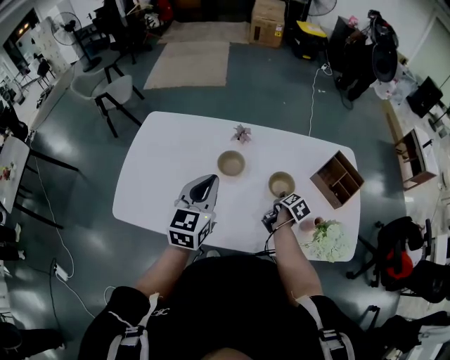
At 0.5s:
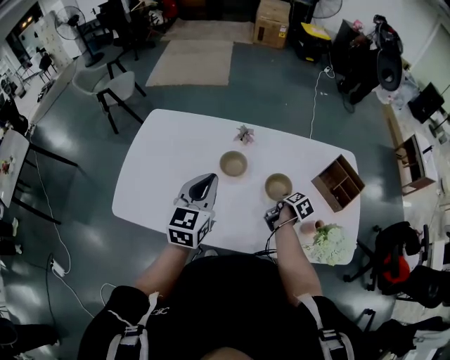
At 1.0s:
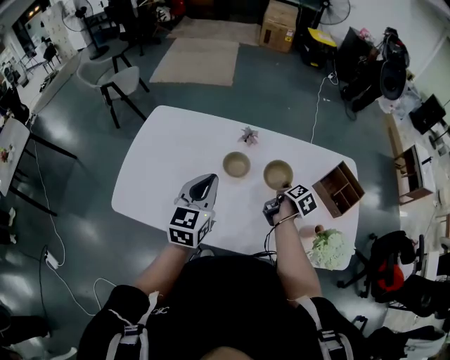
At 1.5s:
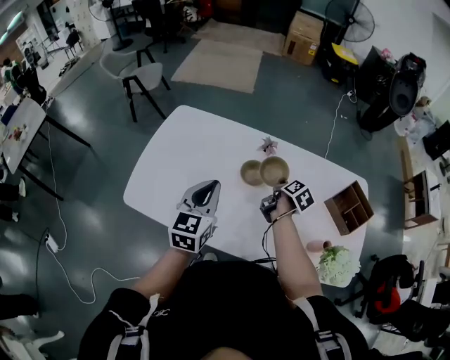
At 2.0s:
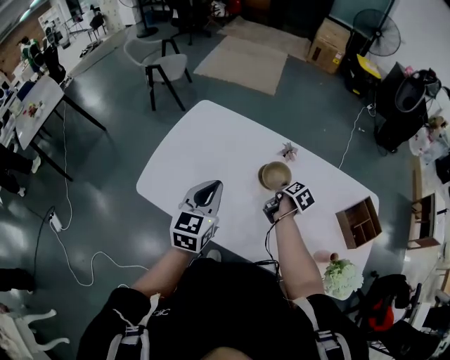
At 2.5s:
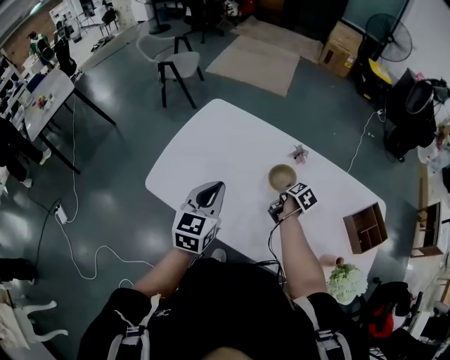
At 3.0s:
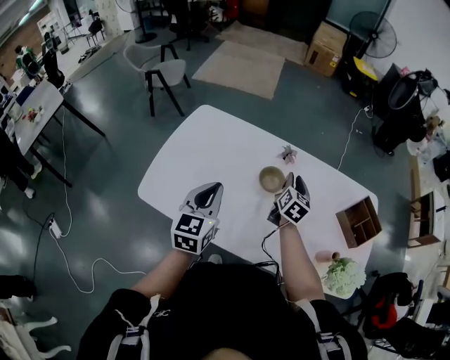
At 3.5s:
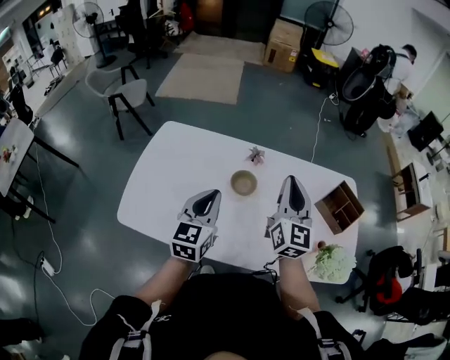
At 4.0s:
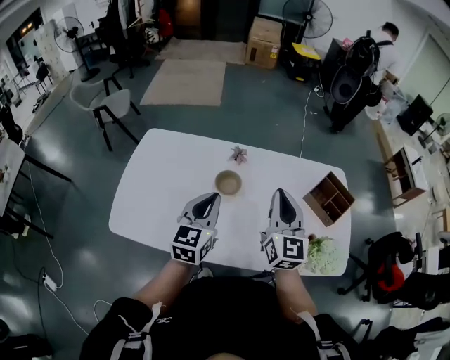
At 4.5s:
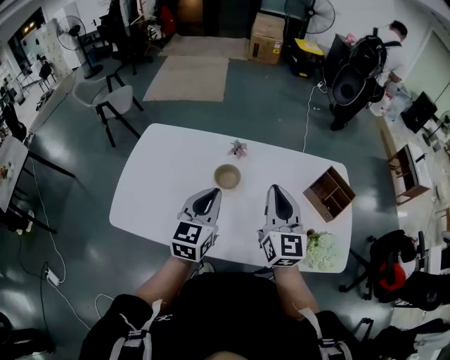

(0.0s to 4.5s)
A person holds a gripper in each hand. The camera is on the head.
0.0s - 2.0s: The right gripper is displaced to the left by roughly 20 cm, and closes its fingers, while the left gripper moves to the left, approximately 15 cm.
2.0s - 4.5s: The left gripper goes about 15 cm to the right; the right gripper goes roughly 30 cm upward and backward, tilts its fingers some 50 degrees upward, and opens and closes again.

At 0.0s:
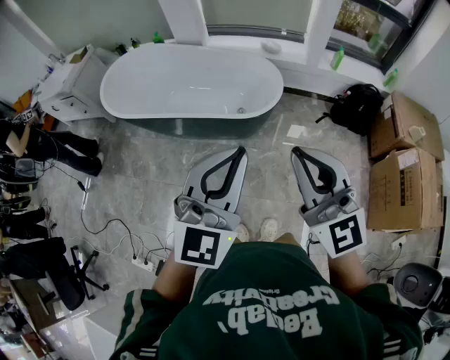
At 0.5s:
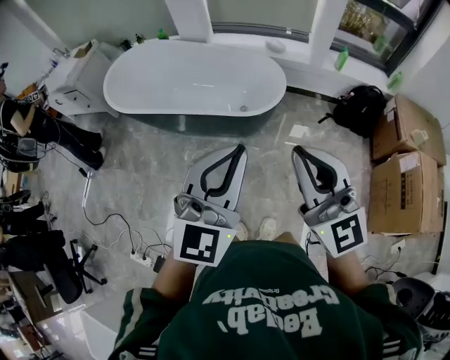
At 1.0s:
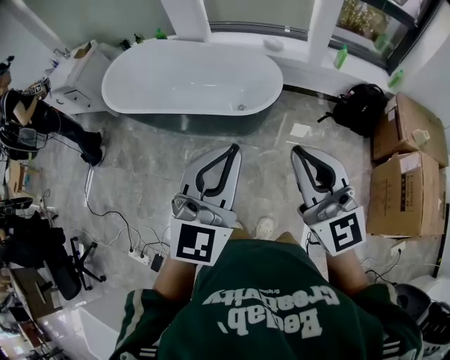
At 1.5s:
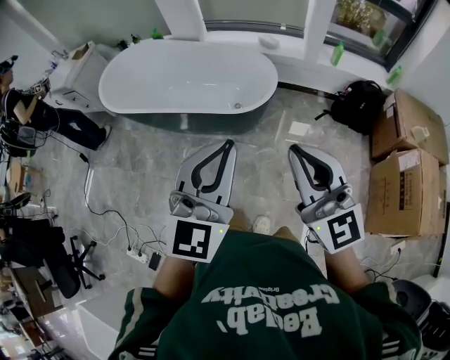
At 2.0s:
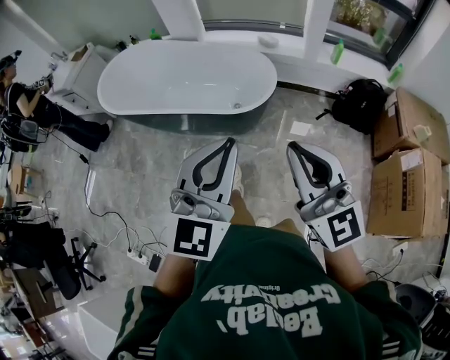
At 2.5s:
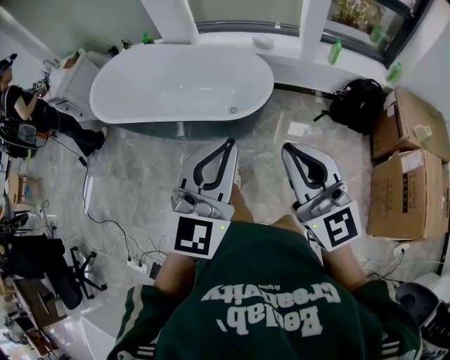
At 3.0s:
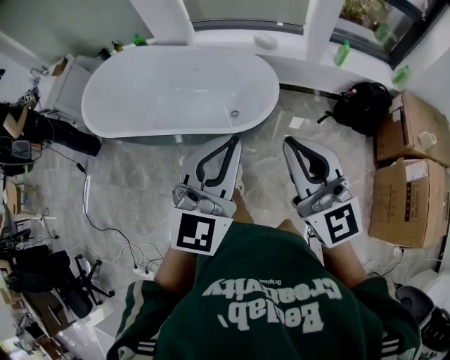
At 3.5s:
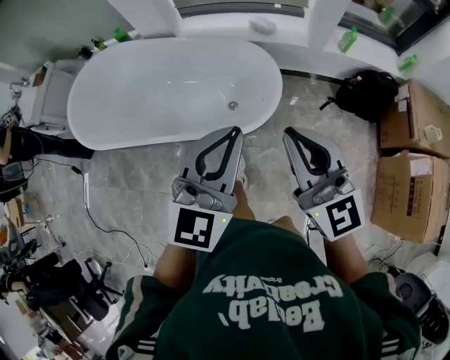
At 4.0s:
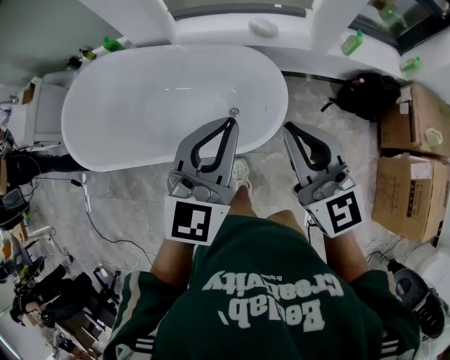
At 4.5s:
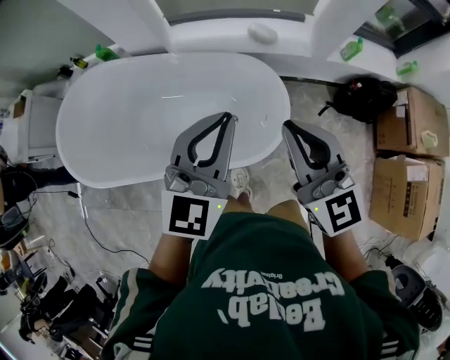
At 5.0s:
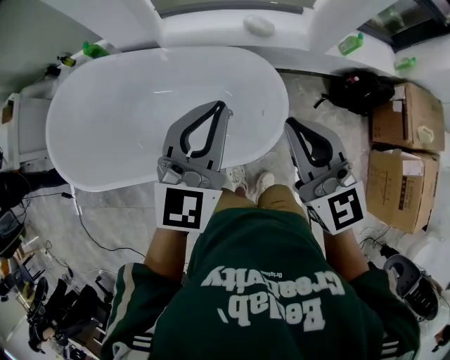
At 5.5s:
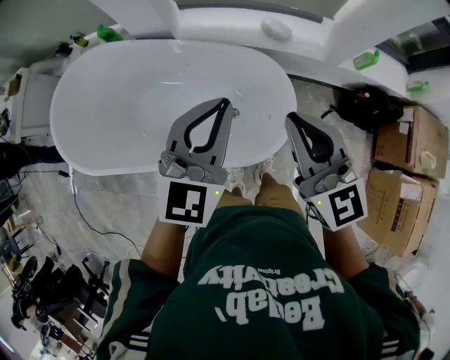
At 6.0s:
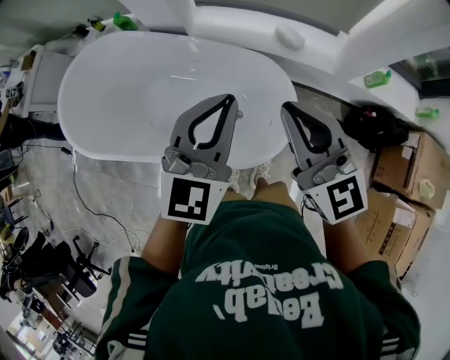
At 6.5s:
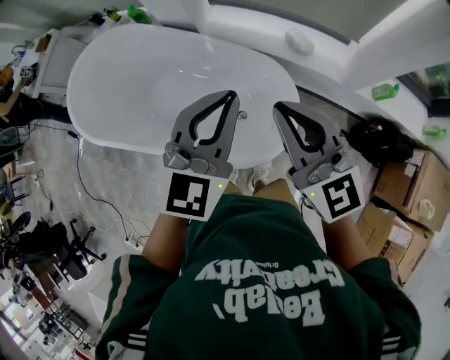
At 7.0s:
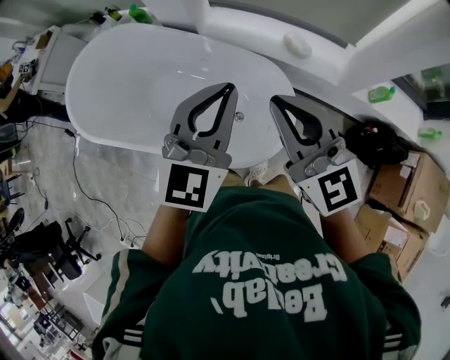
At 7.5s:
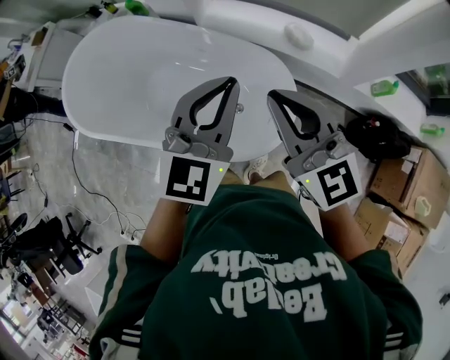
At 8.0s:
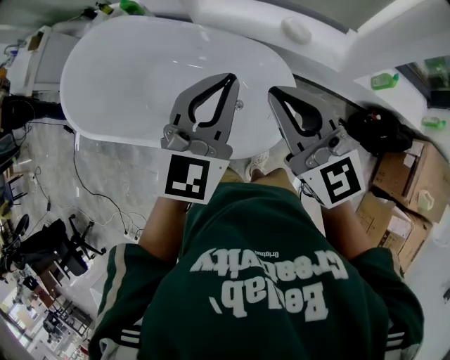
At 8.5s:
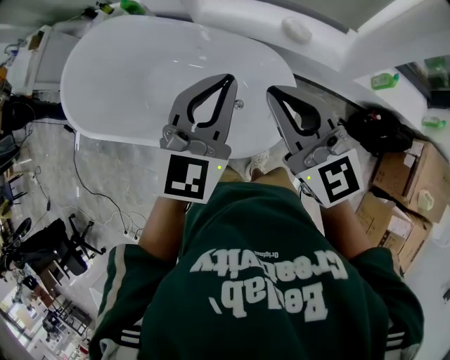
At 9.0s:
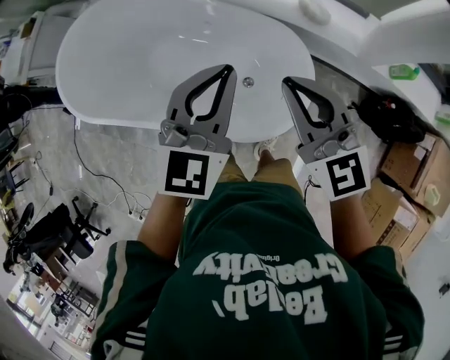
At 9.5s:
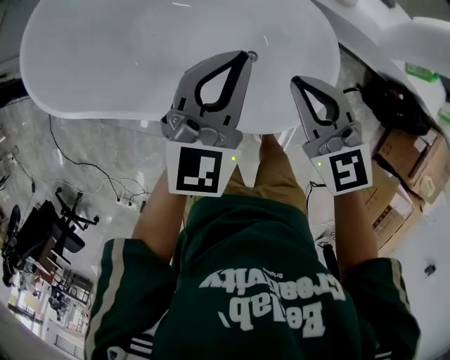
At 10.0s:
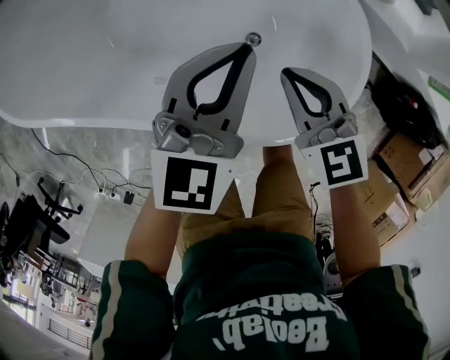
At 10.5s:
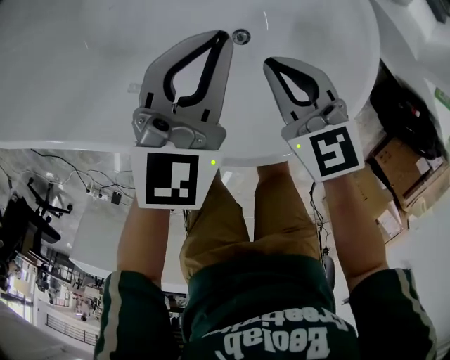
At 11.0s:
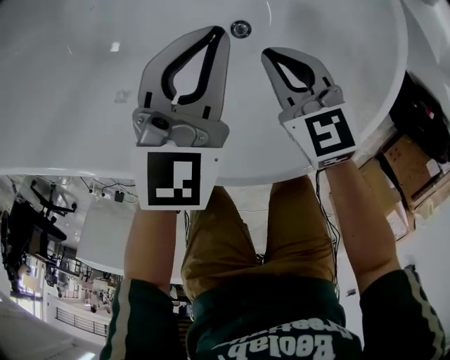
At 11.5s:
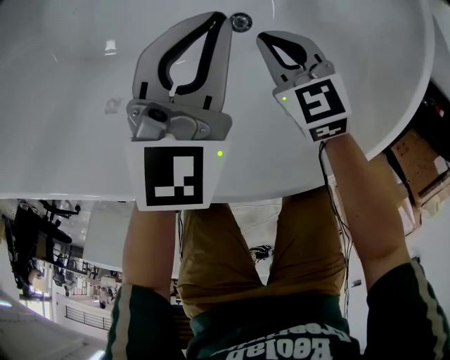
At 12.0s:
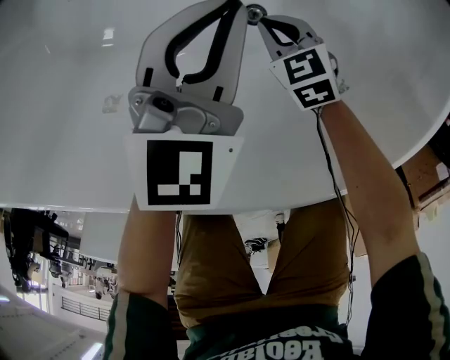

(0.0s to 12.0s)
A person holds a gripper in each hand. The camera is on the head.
0.0s - 2.0s: Both grippers move to the right, roughly 10 cm.
2.0s - 4.0s: The pair of grippers is taken forward, approximately 40 cm.
4.0s - 6.0s: Both grippers move forward, about 20 cm.
6.0s - 8.0s: The grippers move only a little.
8.0s - 10.0s: The right gripper goes roughly 40 cm downward, and tips its fingers downward by some 30 degrees. Meanwhile the left gripper heads downward and to the left, covering about 35 cm.
10.0s - 12.0s: The two grippers go some 35 cm downward. The right gripper turns by some 20 degrees.

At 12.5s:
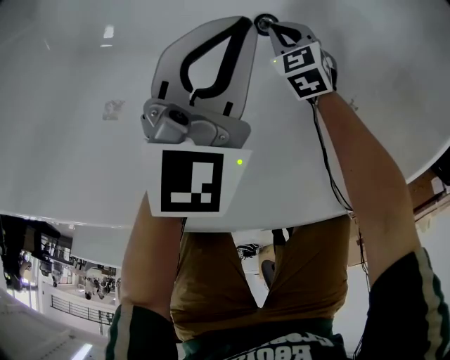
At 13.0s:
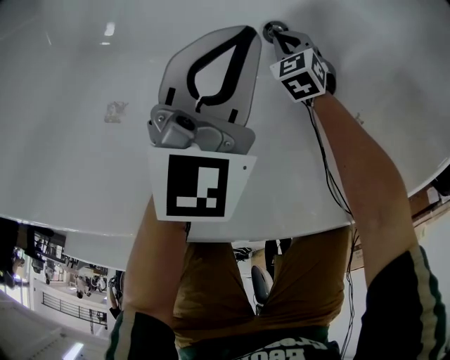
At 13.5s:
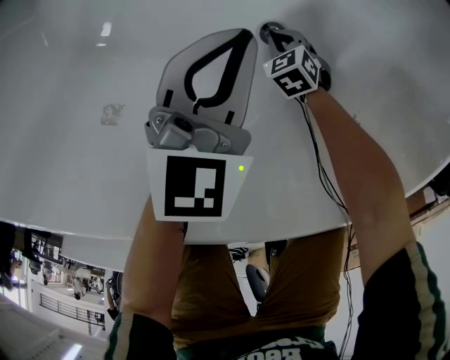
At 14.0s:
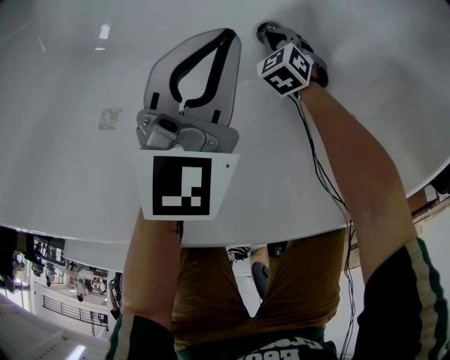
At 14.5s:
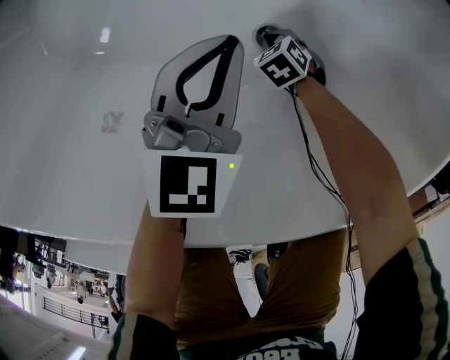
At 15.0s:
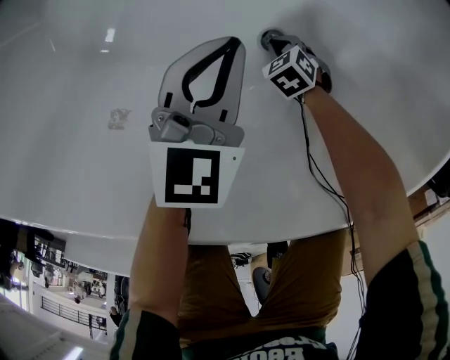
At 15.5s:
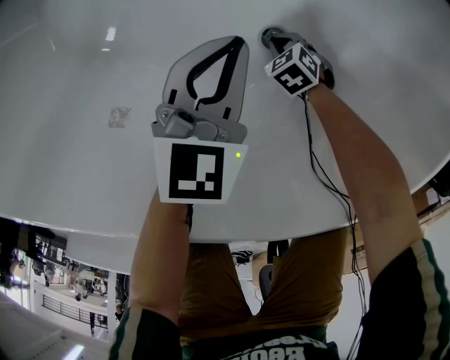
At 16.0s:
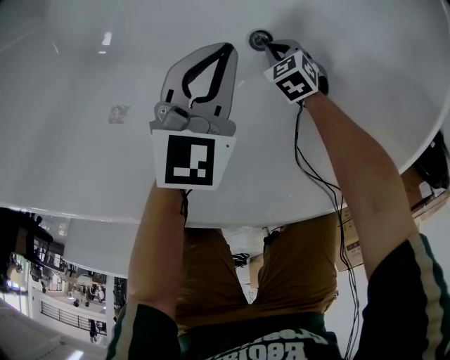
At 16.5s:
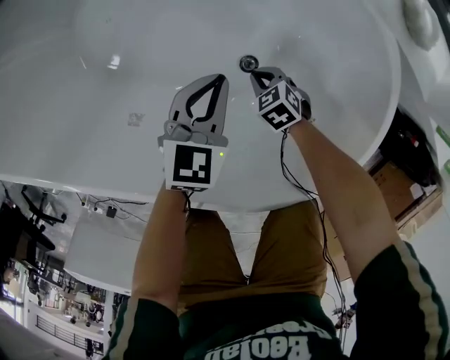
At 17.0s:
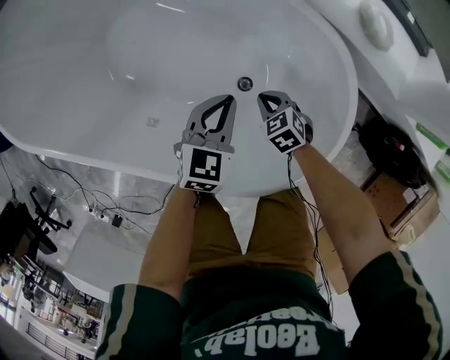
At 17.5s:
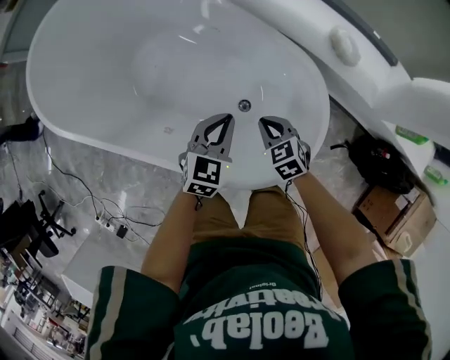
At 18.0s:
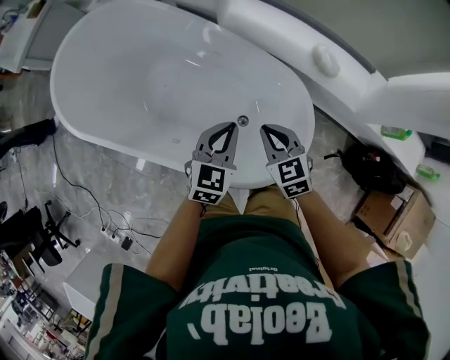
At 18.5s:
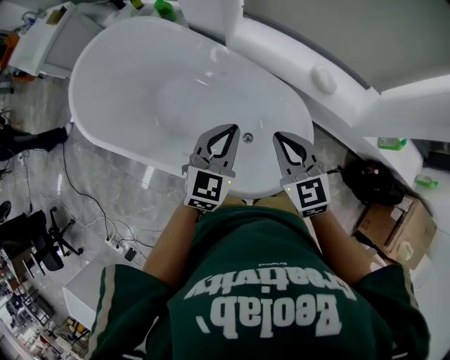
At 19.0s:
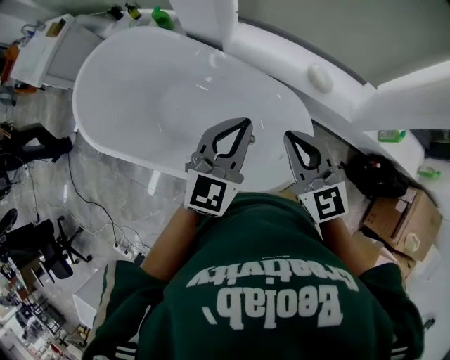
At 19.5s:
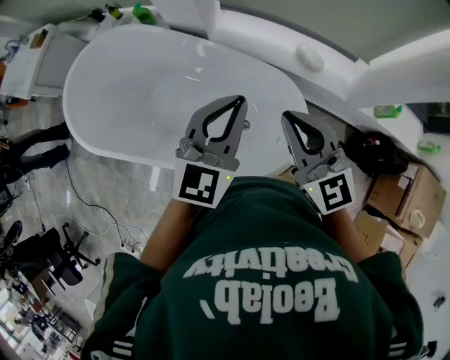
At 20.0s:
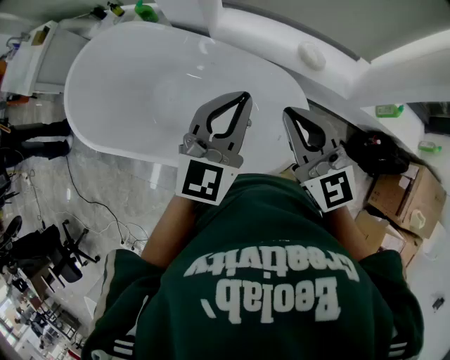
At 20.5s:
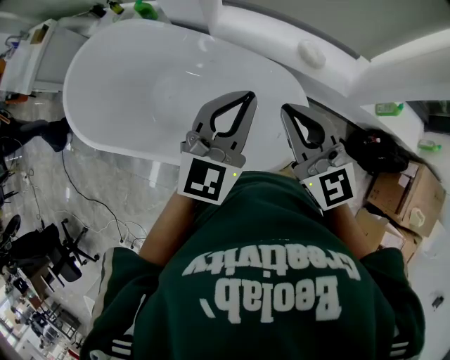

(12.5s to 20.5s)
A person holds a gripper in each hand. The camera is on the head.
12.5s - 14.5s: The right gripper moves downward, some 5 cm.
14.5s - 16.5s: The right gripper moves upward, some 20 cm. The left gripper goes about 10 cm upward.
16.5s - 18.5s: The two grippers go about 50 cm upward. The right gripper angles its fingers upward, by approximately 40 degrees, while the left gripper swivels roughly 20 degrees.
18.5s - 20.5s: The two grippers go about 15 cm upward. The right gripper swivels about 20 degrees.

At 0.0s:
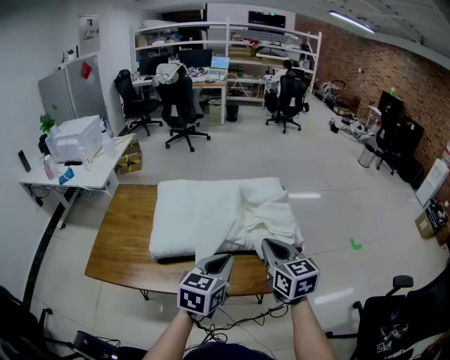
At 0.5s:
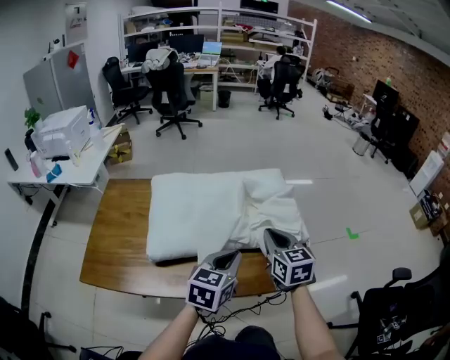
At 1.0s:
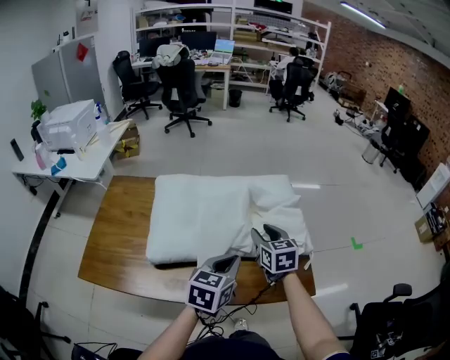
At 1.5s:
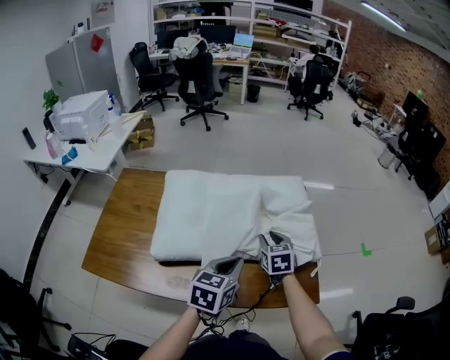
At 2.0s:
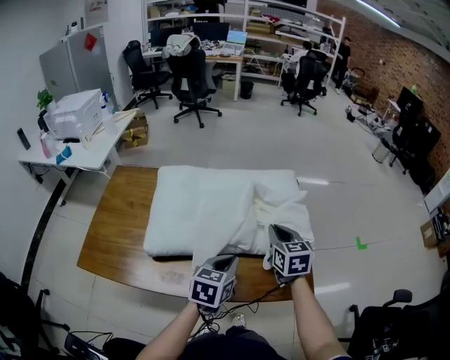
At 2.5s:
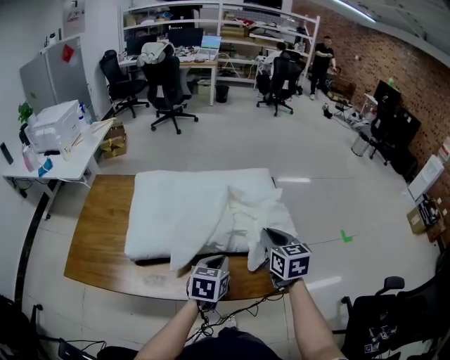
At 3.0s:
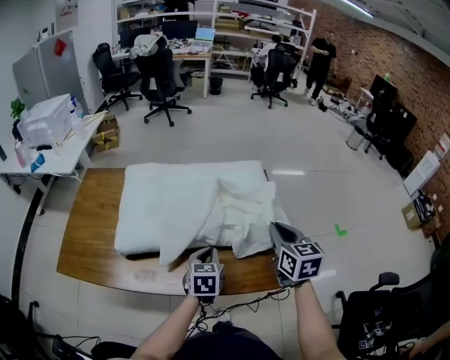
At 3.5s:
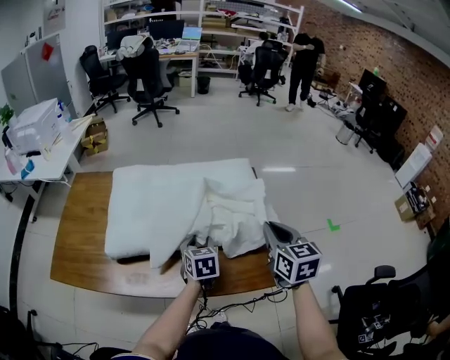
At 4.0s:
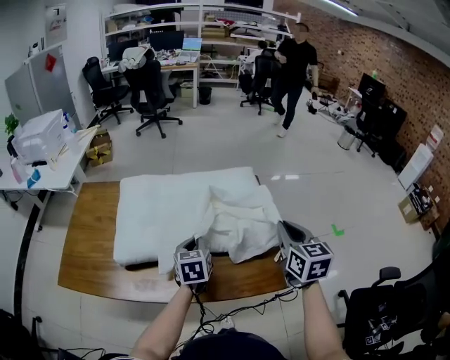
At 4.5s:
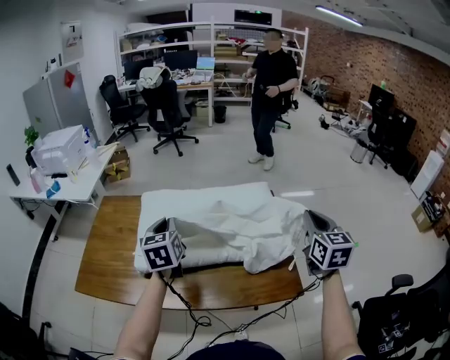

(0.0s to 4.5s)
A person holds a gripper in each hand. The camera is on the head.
0.0s - 2.0s: The right gripper goes roughly 15 cm forward and downward, and opens, then closes once more; the left gripper travels downward and forward by some 10 cm.
2.0s - 4.5s: The left gripper moves to the left, upward and forward, about 20 cm, changes its angle by approximately 30 degrees, and opens, then closes again, while the right gripper moves to the right and upward, approximately 20 cm.
